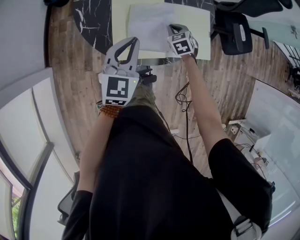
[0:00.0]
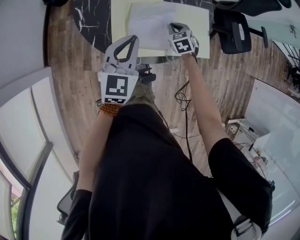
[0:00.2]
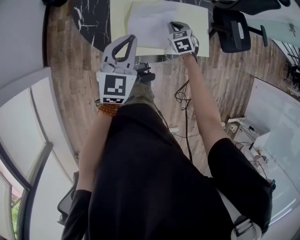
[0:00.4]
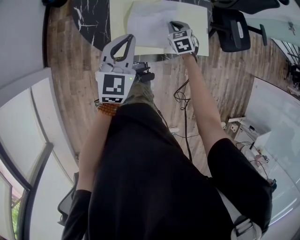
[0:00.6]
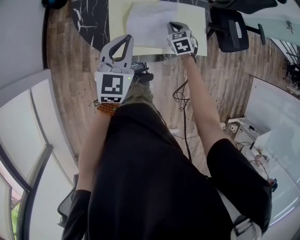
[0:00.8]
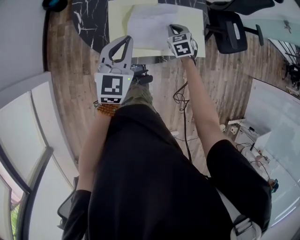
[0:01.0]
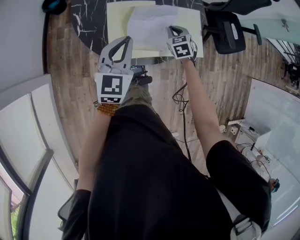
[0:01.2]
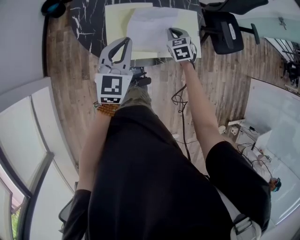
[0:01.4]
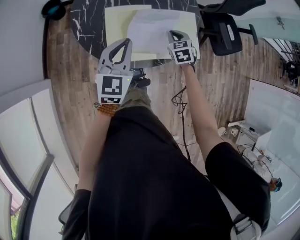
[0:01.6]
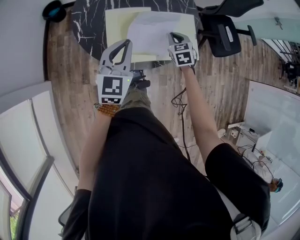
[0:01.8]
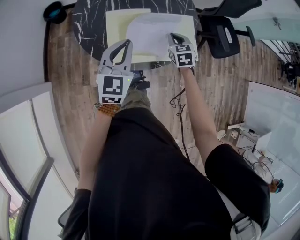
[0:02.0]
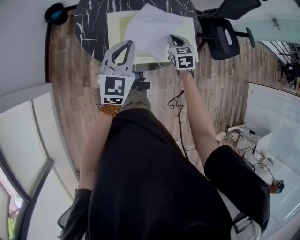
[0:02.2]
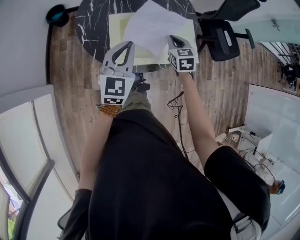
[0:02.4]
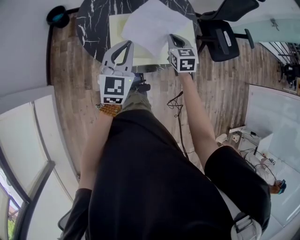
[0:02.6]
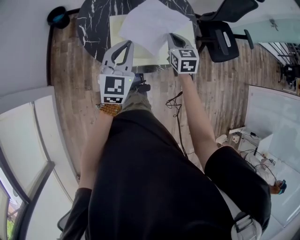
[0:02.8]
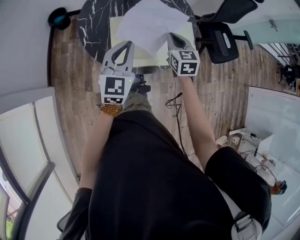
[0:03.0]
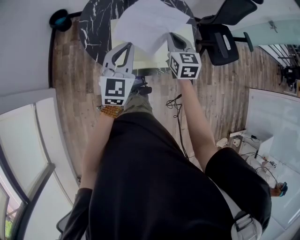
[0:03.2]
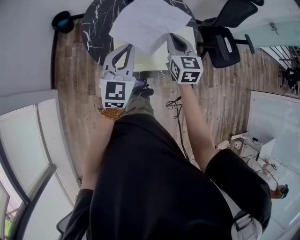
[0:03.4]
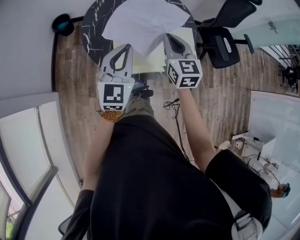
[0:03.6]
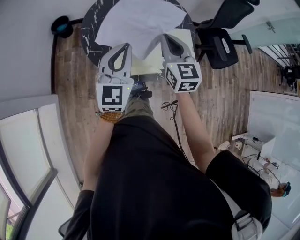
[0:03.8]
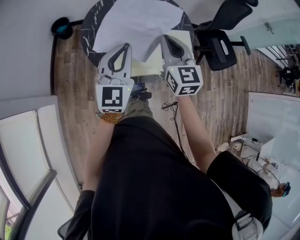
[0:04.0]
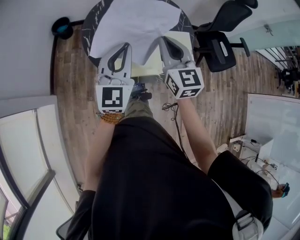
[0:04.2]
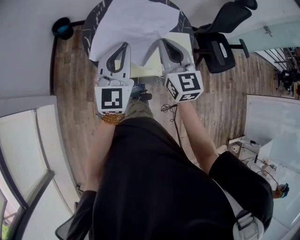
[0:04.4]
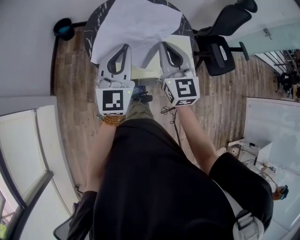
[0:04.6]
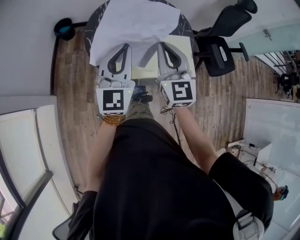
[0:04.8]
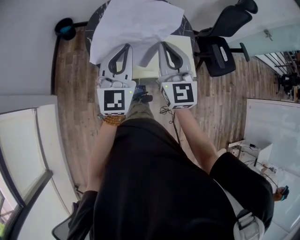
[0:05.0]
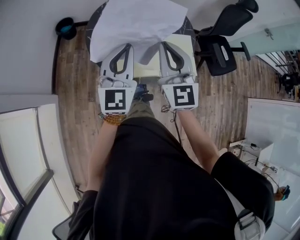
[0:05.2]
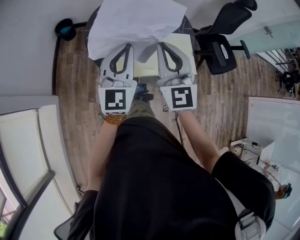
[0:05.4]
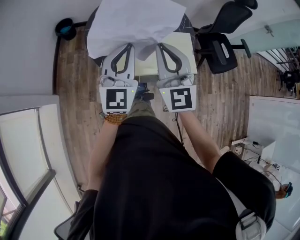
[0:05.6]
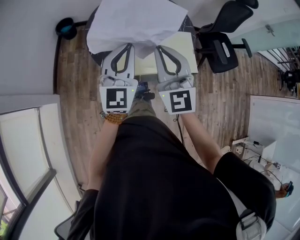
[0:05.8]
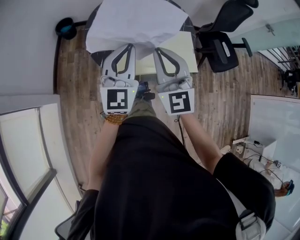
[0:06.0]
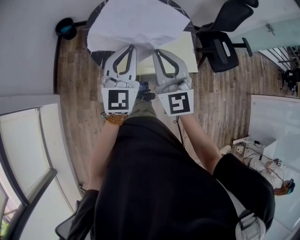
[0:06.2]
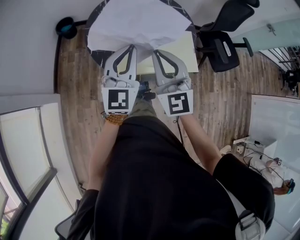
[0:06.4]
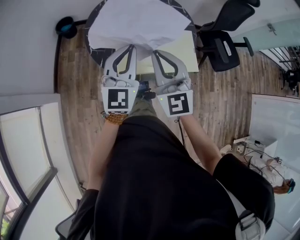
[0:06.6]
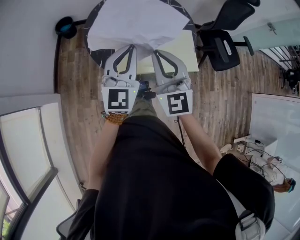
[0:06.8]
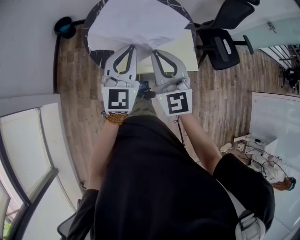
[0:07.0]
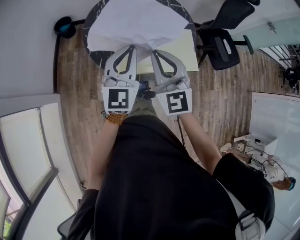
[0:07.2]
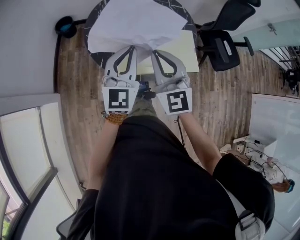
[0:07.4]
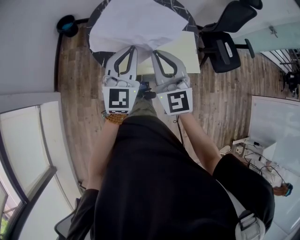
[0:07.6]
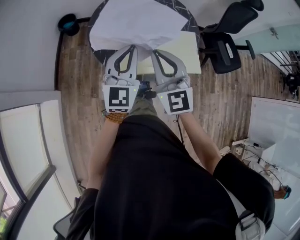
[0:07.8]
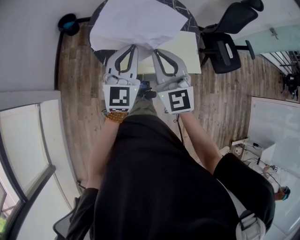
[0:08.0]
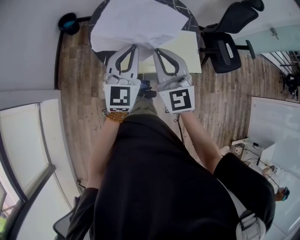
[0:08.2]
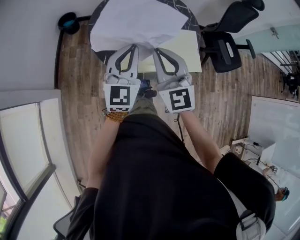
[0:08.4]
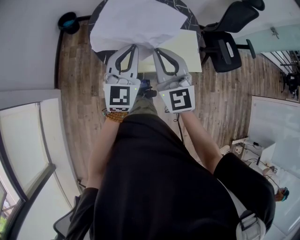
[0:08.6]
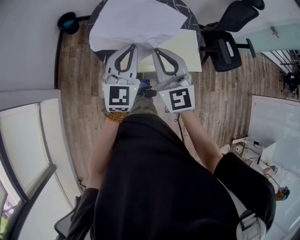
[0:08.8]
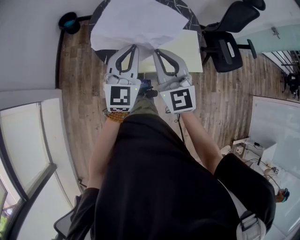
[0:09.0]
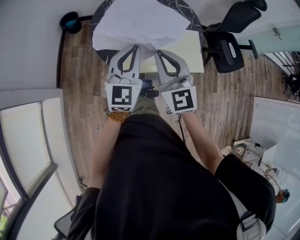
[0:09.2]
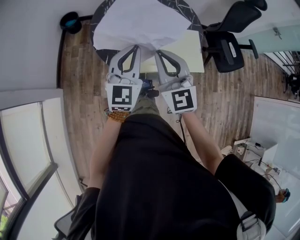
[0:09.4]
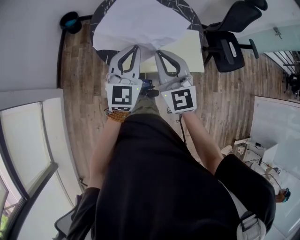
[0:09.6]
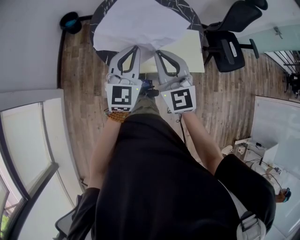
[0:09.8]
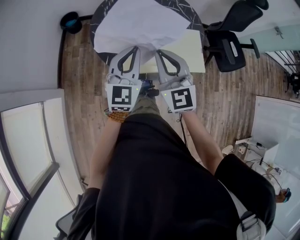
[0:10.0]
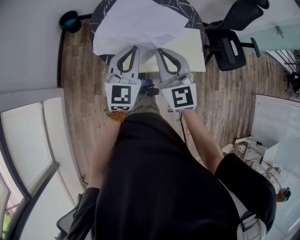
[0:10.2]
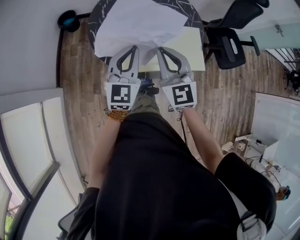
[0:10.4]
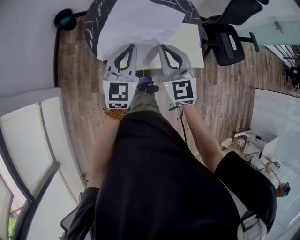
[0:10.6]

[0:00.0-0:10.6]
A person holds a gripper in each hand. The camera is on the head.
0:00.0 to 0:01.6: The right gripper heads upward, covering approximately 10 cm.
0:01.6 to 0:03.0: The right gripper travels upward by approximately 15 cm, and turns by approximately 20 degrees.
0:03.0 to 0:04.6: The left gripper goes roughly 10 cm upward; the right gripper travels upward, to the left and backward by roughly 20 cm, and changes its angle by approximately 20 degrees.
0:04.6 to 0:06.0: The right gripper heads backward, covering roughly 5 cm.
0:06.0 to 0:07.6: The grippers make only small movements.
0:07.6 to 0:09.0: Both grippers stay about where they are.
0:09.0 to 0:10.6: The left gripper moves approximately 5 cm, while the right gripper shifts some 5 cm downward.

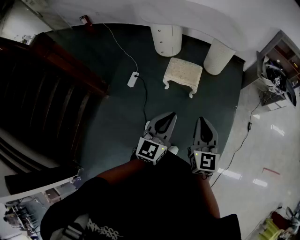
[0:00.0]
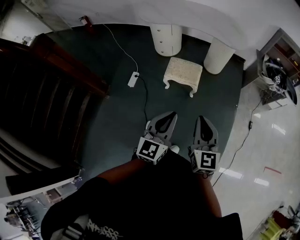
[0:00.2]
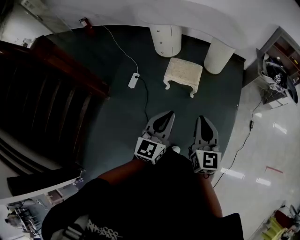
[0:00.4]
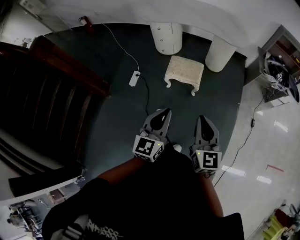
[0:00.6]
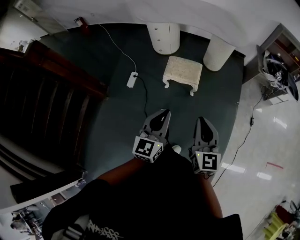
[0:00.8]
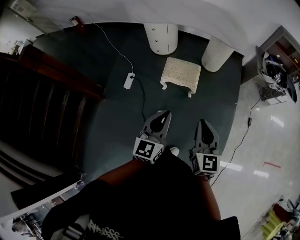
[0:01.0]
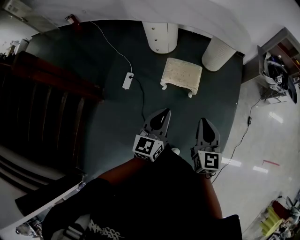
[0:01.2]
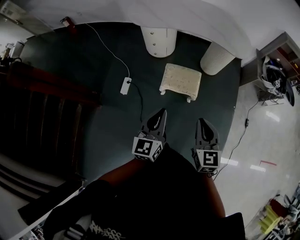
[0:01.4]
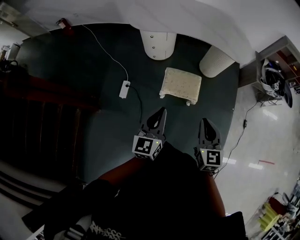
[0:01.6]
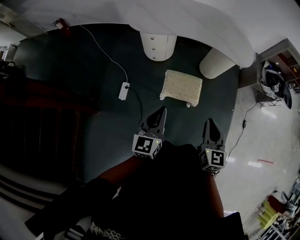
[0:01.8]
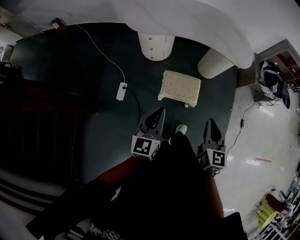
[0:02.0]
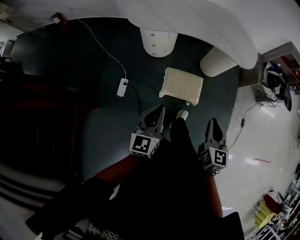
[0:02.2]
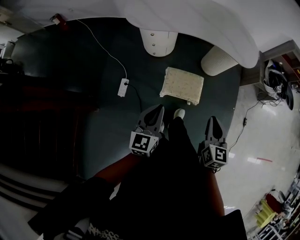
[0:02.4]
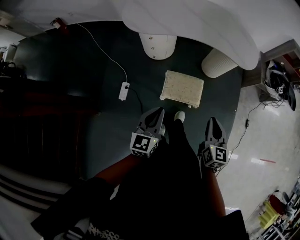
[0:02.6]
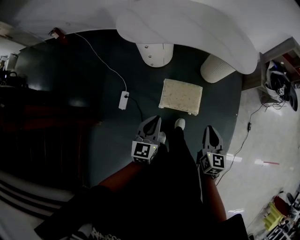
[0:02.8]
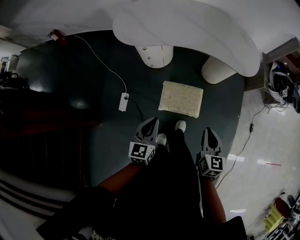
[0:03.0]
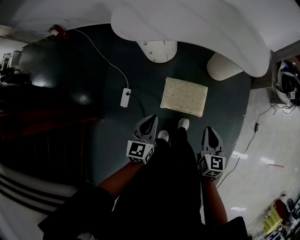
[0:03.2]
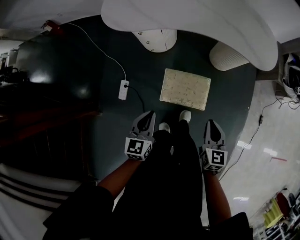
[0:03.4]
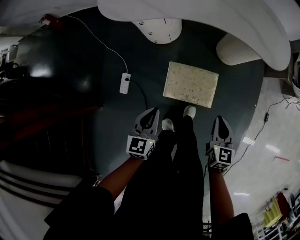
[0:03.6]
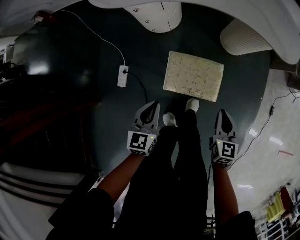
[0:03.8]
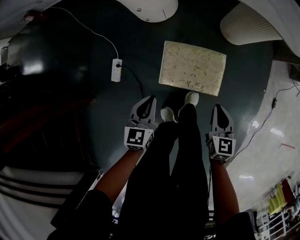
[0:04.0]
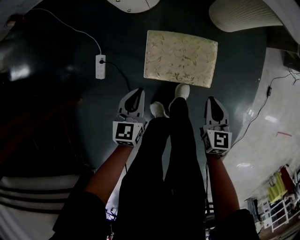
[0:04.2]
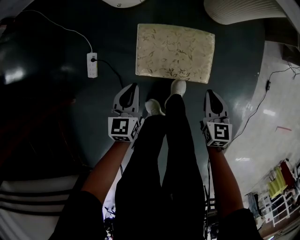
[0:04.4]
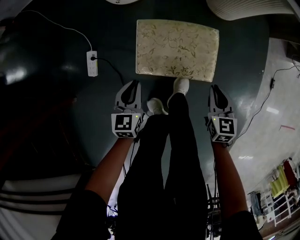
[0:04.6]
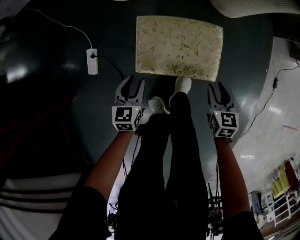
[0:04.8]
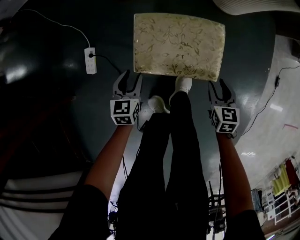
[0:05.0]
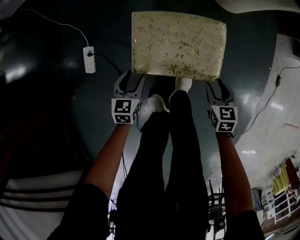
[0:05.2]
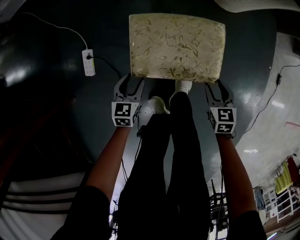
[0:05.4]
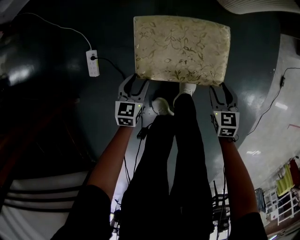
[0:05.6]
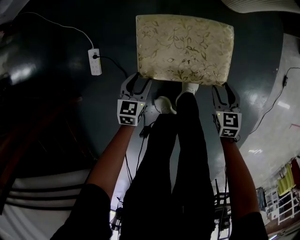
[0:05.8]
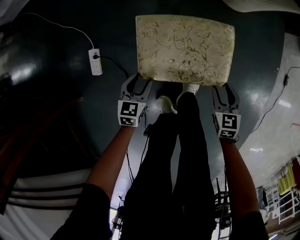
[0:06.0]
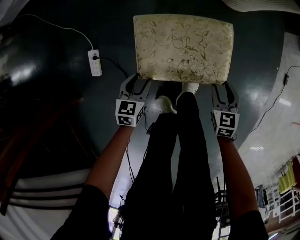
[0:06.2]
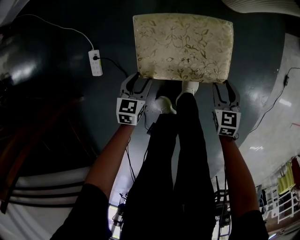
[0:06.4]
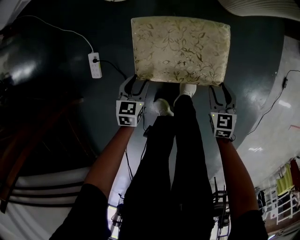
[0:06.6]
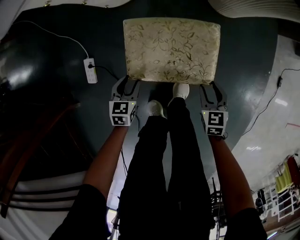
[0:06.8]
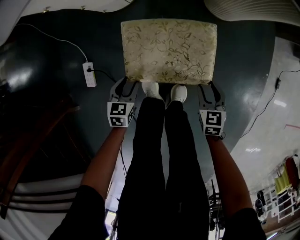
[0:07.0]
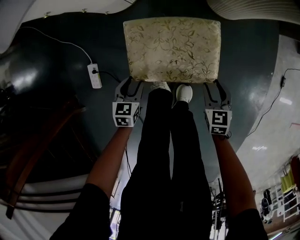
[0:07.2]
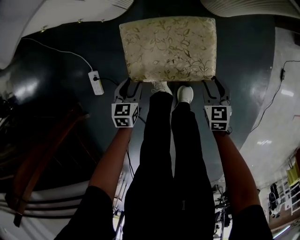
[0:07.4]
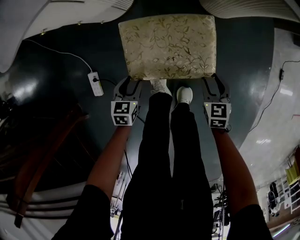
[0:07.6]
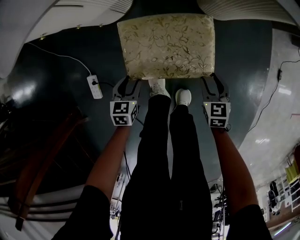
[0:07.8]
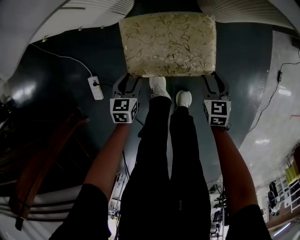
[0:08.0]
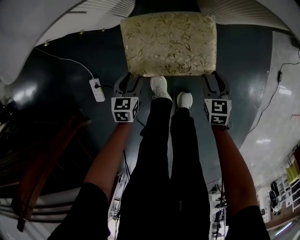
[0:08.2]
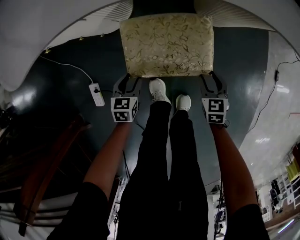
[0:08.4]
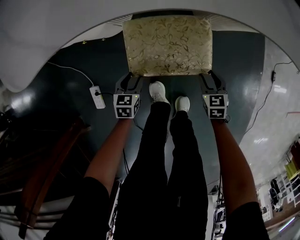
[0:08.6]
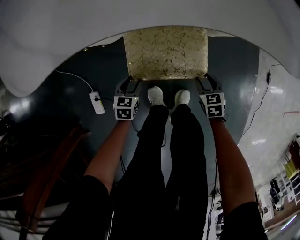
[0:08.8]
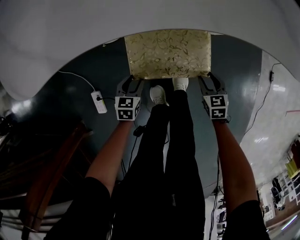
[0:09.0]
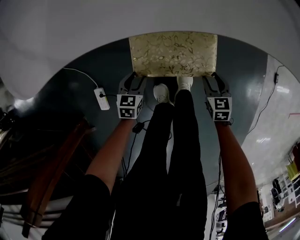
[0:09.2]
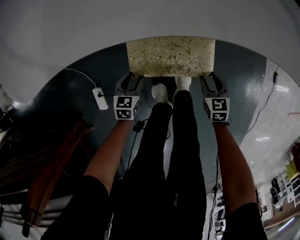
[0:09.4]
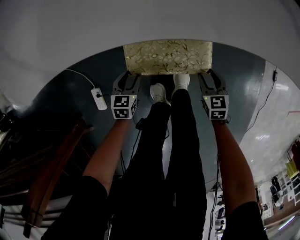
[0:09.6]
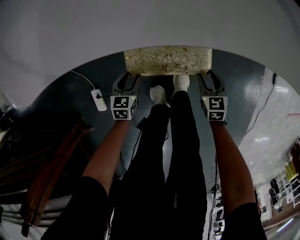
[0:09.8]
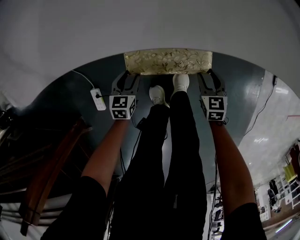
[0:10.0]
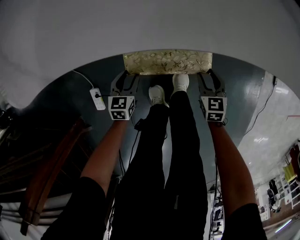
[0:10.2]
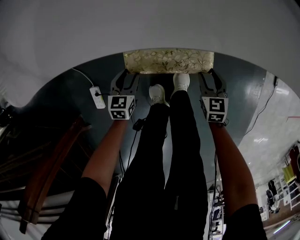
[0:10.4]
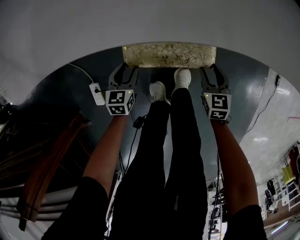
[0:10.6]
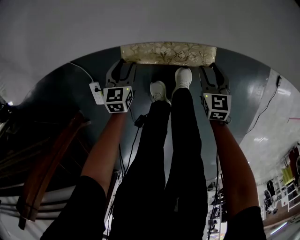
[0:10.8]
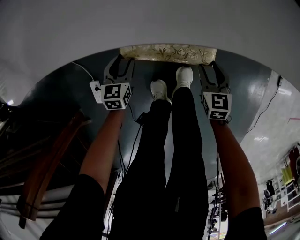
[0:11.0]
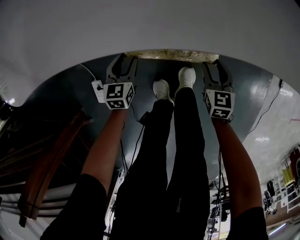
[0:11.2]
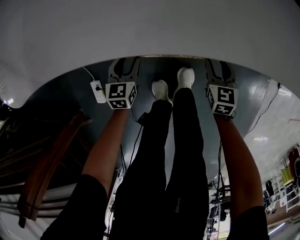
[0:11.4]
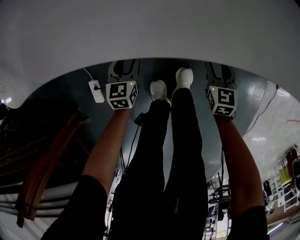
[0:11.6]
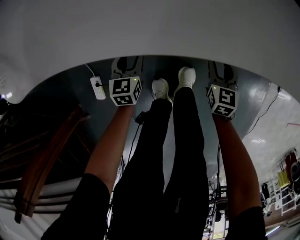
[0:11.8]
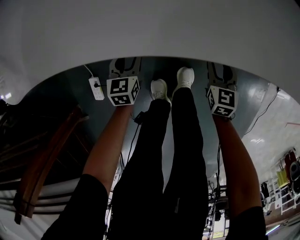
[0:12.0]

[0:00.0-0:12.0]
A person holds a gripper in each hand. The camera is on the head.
0:00.0 to 0:01.6: The right gripper shifts roughly 25 cm forward, while the left gripper heads forward and to the left, covering approximately 30 cm.
0:01.6 to 0:03.0: The two grippers go about 20 cm forward and downward.
0:03.0 to 0:04.4: Both grippers travel together downward, about 40 cm.
0:04.4 to 0:06.0: The grippers both shift downward by about 15 cm. The left gripper opens up, while the right gripper opens up.
0:06.0 to 0:10.4: The grippers move only a little.
0:10.4 to 0:12.0: The grippers both shift forward by about 5 cm.

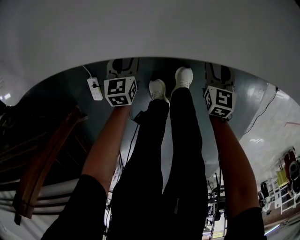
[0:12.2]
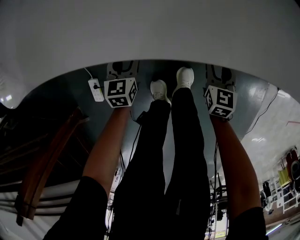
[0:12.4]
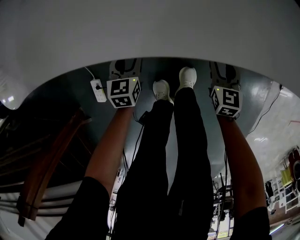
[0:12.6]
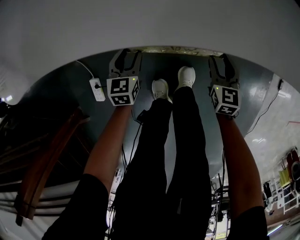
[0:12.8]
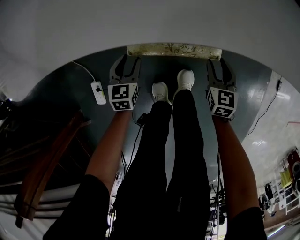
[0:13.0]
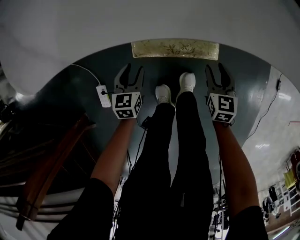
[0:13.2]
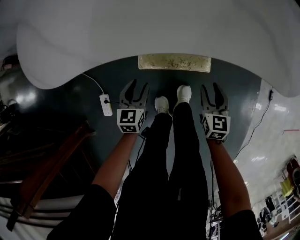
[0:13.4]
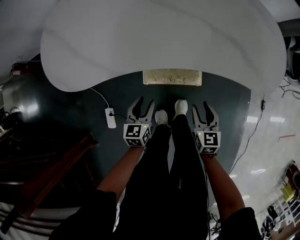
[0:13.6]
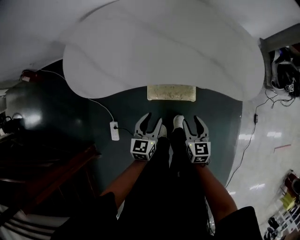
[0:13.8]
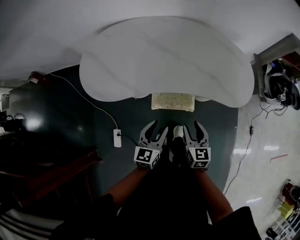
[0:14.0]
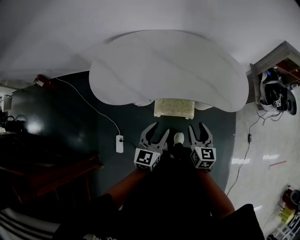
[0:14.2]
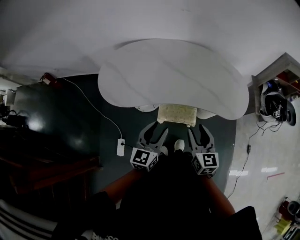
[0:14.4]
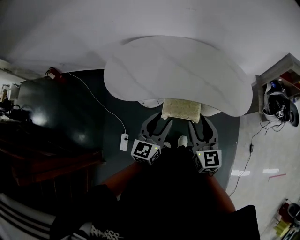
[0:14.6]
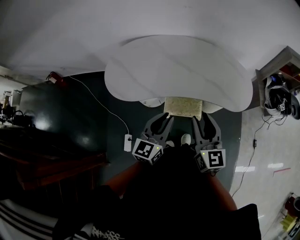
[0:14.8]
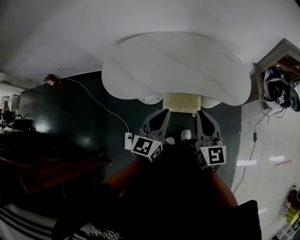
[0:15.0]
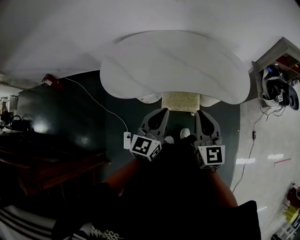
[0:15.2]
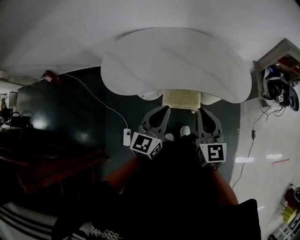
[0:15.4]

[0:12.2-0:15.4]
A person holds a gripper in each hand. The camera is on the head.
0:12.2 to 0:13.8: Both grippers travel together upward, roughly 35 cm.
0:13.8 to 0:15.4: Both grippers move upward, approximately 35 cm. The right gripper turns by about 30 degrees, and closes its fingers, while the left gripper changes its angle by approximately 20 degrees, and closes.
